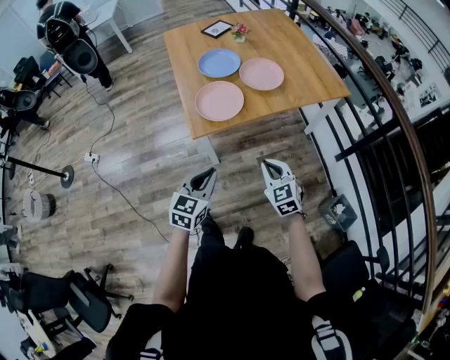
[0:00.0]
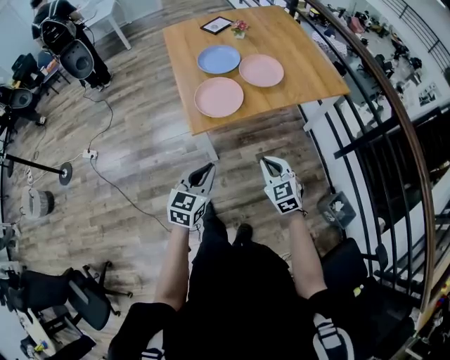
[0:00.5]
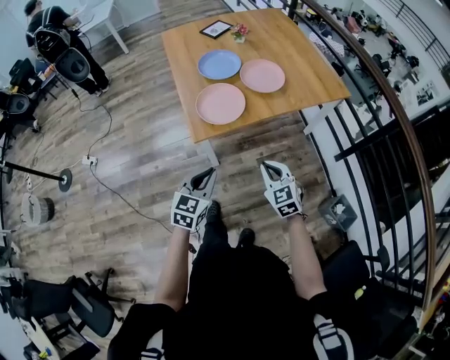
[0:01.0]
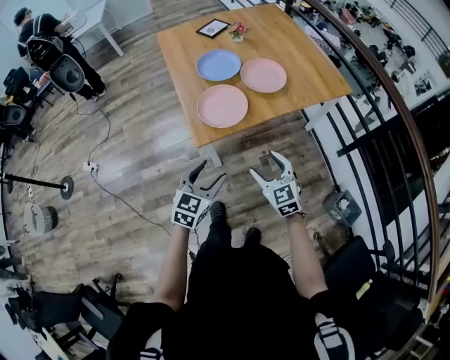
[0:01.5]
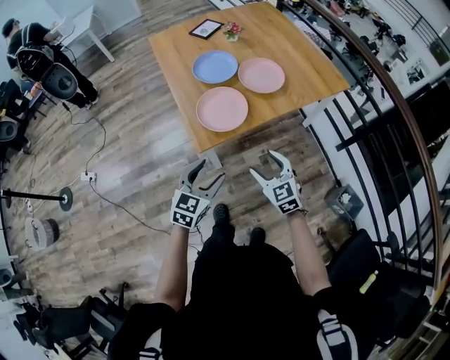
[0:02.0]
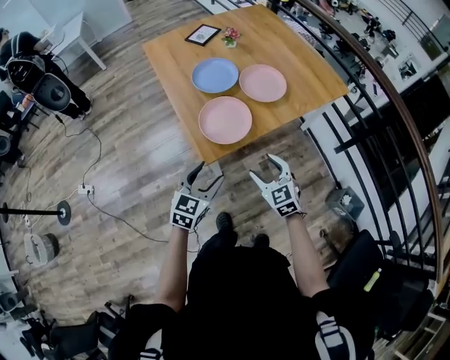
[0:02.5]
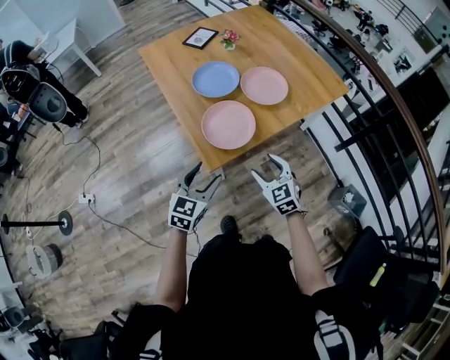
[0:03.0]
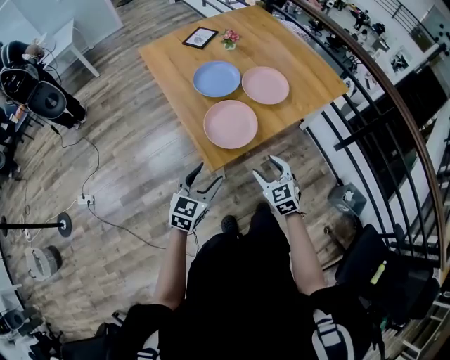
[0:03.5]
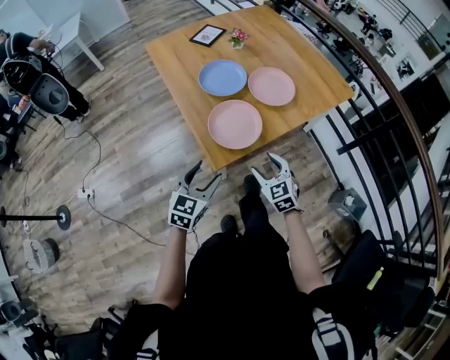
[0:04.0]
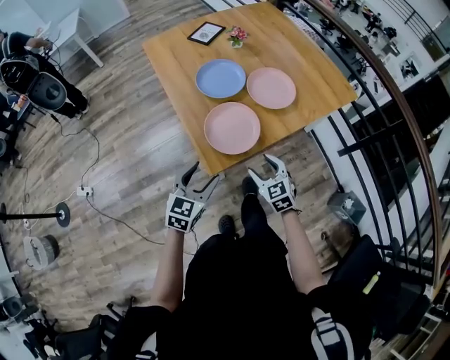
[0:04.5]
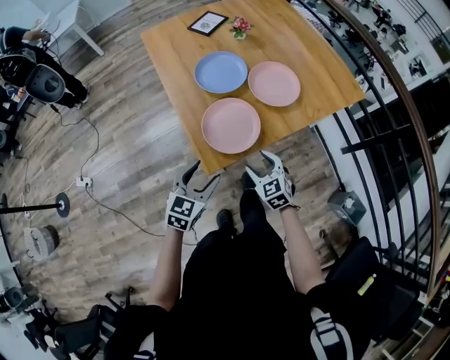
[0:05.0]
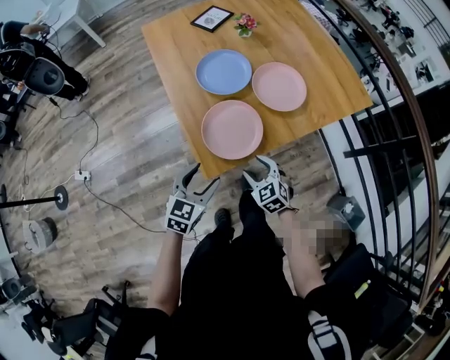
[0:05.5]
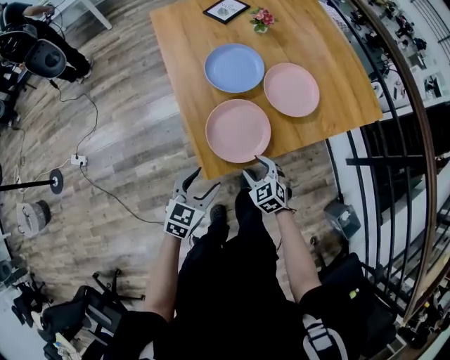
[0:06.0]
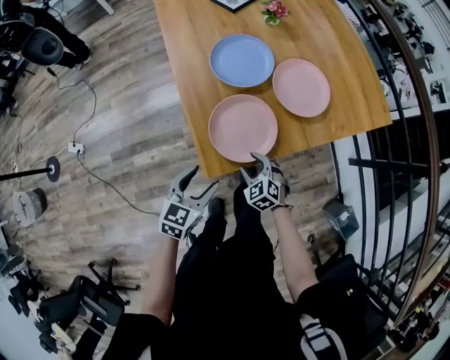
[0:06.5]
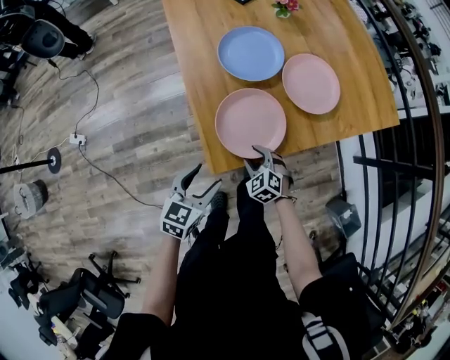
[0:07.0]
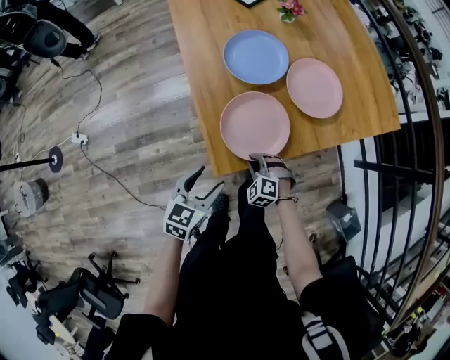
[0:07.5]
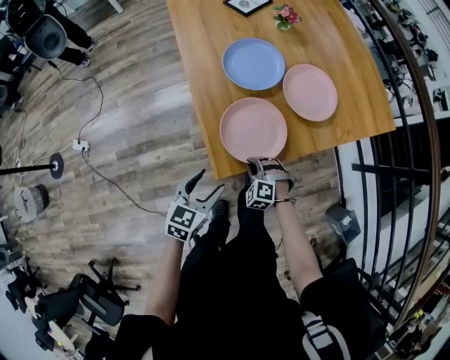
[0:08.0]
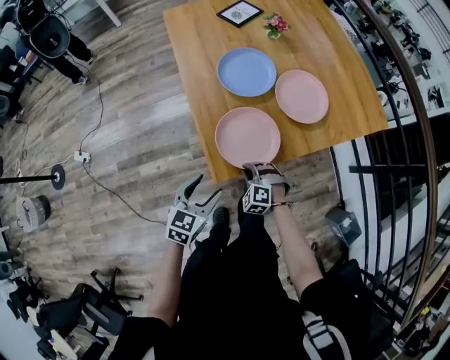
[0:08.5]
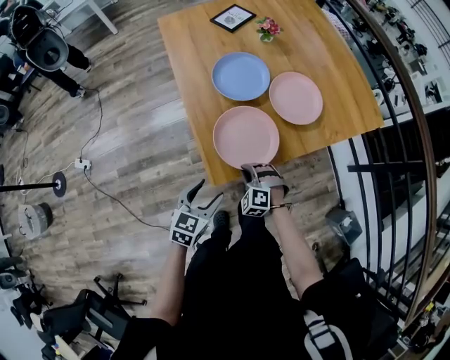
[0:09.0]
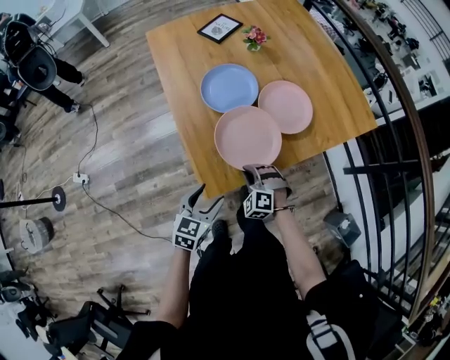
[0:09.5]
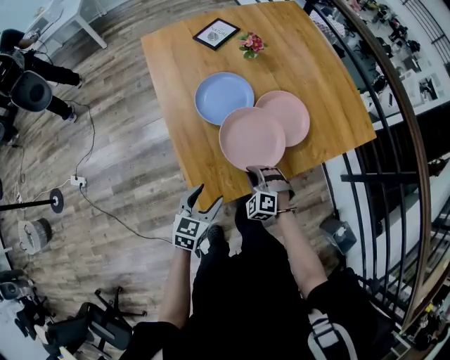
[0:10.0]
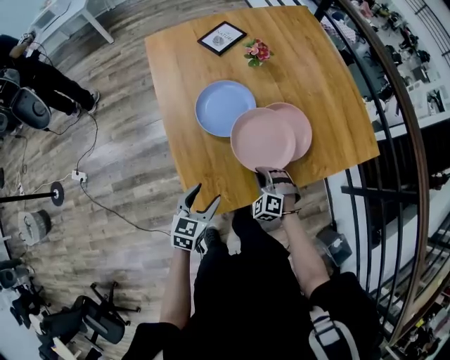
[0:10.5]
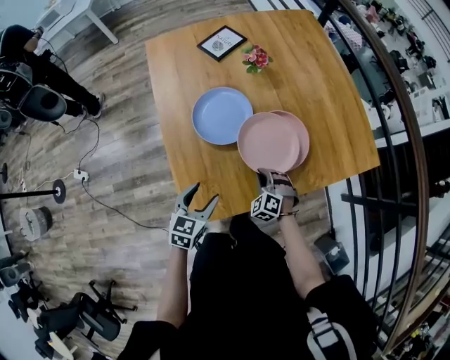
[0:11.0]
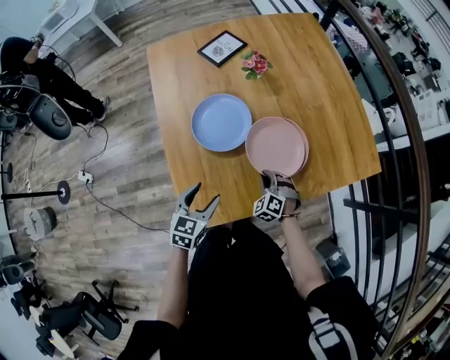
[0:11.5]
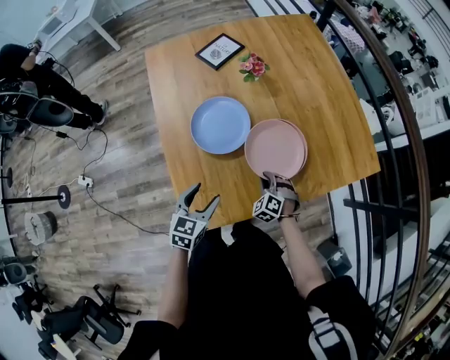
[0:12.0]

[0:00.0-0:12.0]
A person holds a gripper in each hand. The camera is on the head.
0:00.0 to 0:02.0: The left gripper travels forward and to the left by some 10 cm, and opens. The right gripper heads to the left and forward, covering some 10 cm, and opens up.
0:02.0 to 0:04.0: The right gripper heads forward and to the left, covering some 10 cm; the left gripper shifts some 15 cm to the left and forward.
0:04.0 to 0:06.0: The two grippers go approximately 10 cm downward and forward. The right gripper swivels about 20 degrees.
0:06.0 to 0:08.0: The right gripper travels downward by about 5 cm, swivels roughly 40 degrees, and closes its fingers.
0:08.0 to 0:10.0: The right gripper heads forward, upward and to the right, covering roughly 15 cm; the left gripper goes roughly 10 cm forward and to the right.
0:10.0 to 0:12.0: The left gripper shifts about 10 cm forward. The right gripper moves forward, to the right and downward, roughly 15 cm.

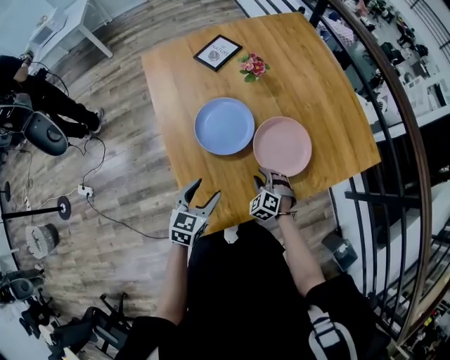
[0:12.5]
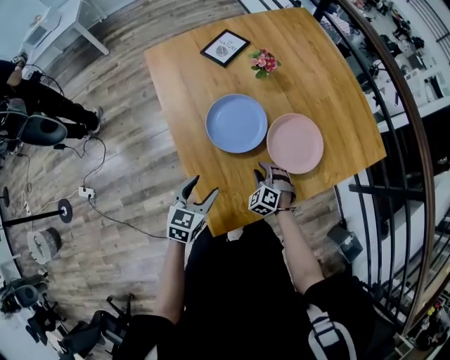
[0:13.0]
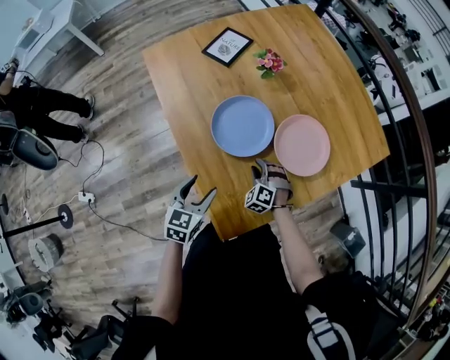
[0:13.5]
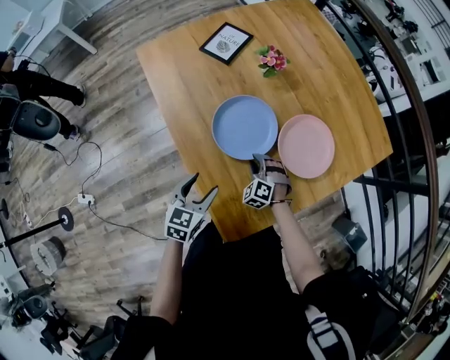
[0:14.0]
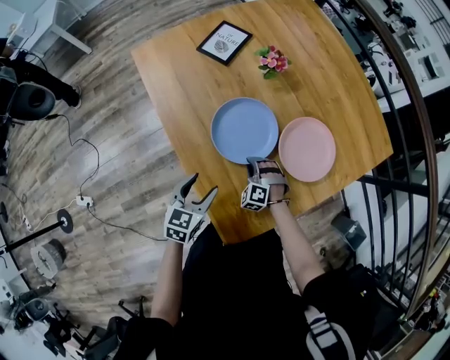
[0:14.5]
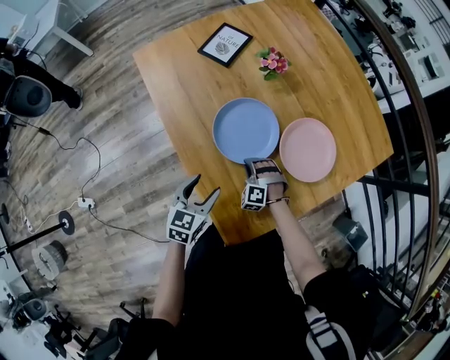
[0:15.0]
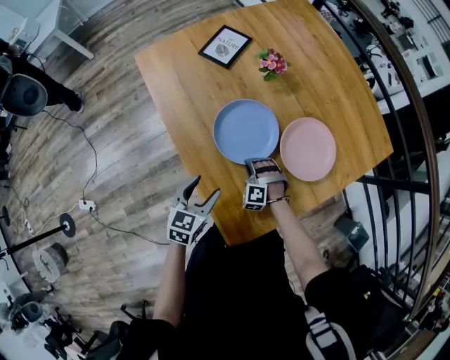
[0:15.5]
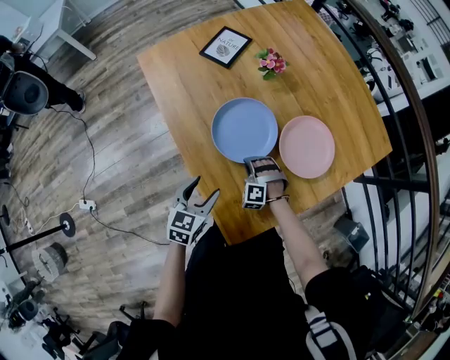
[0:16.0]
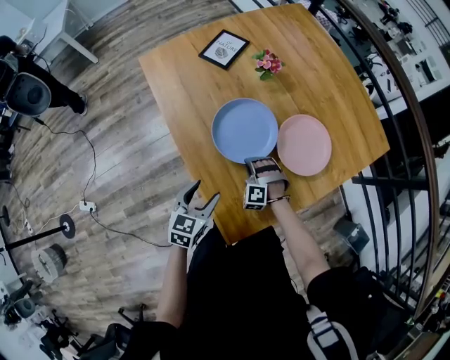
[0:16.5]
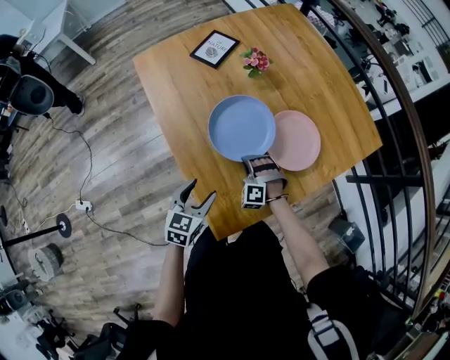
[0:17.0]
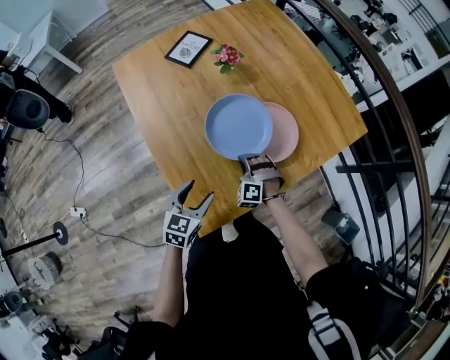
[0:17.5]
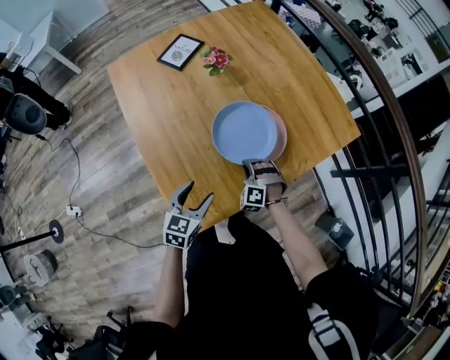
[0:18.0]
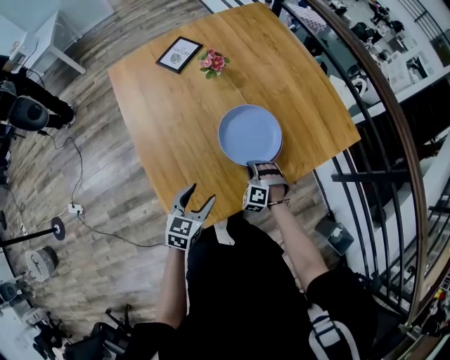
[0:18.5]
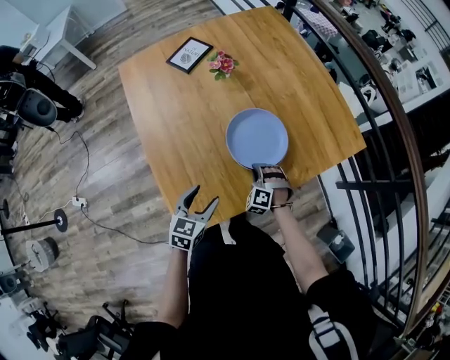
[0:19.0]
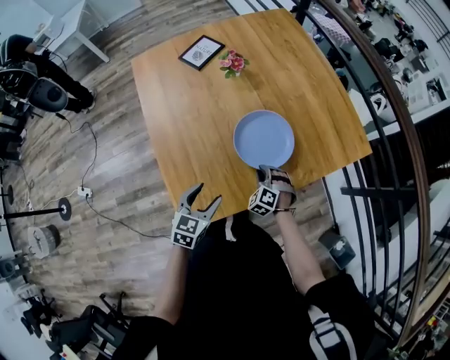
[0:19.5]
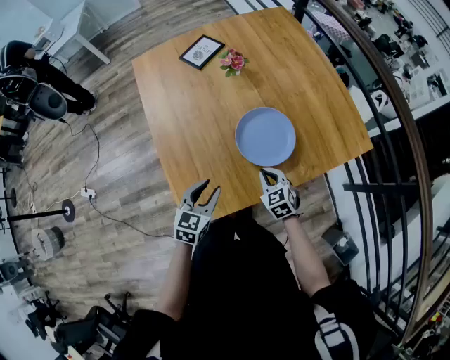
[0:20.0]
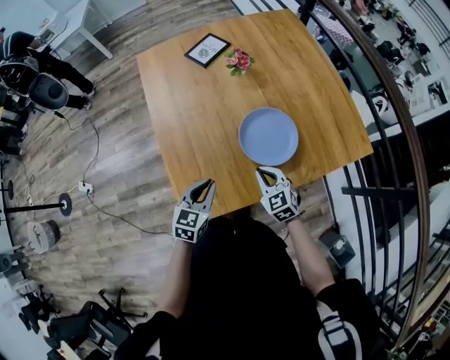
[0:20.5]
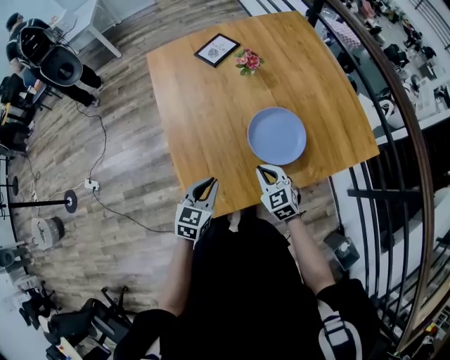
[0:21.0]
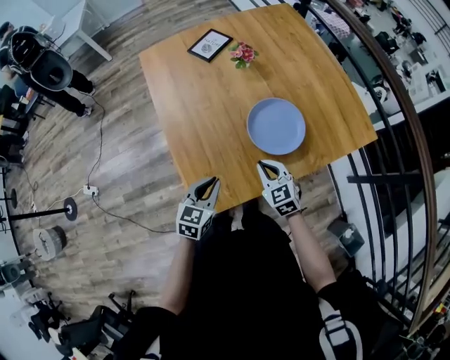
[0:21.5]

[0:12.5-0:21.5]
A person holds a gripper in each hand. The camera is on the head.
0:12.5 to 0:14.5: The left gripper moves to the left and forward, roughly 15 cm, while the right gripper moves to the left, approximately 15 cm.
0:14.5 to 0:17.0: The right gripper moves upward, approximately 5 cm. Meanwhile the left gripper moves backward, some 5 cm.
0:17.0 to 0:19.5: The grippers both shift to the right by roughly 20 cm. The right gripper swivels approximately 20 degrees.
0:19.5 to 0:21.5: The right gripper goes about 15 cm upward and to the left, and turns by roughly 40 degrees, while the left gripper ends up approximately 5 cm from where it was, and closes.

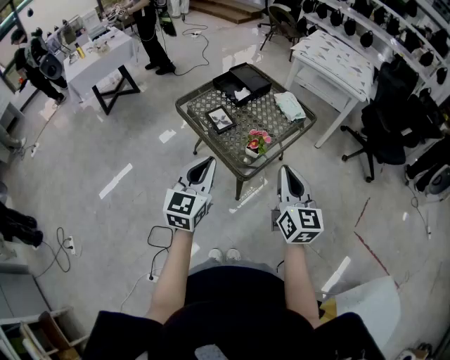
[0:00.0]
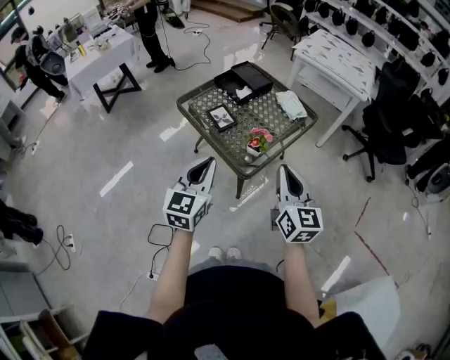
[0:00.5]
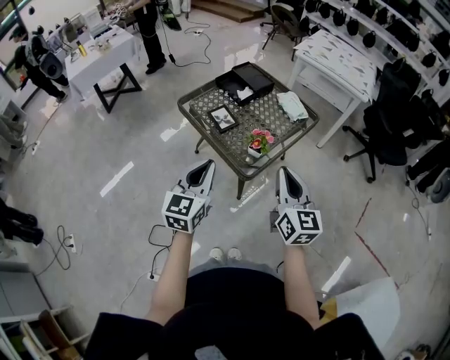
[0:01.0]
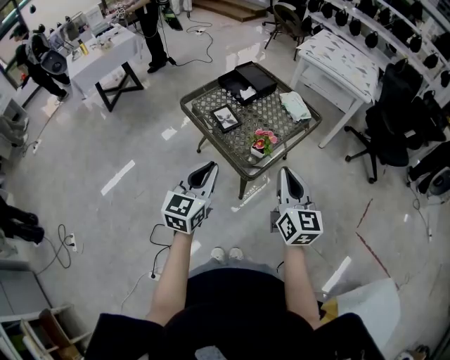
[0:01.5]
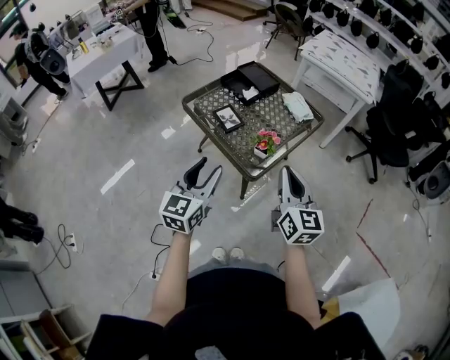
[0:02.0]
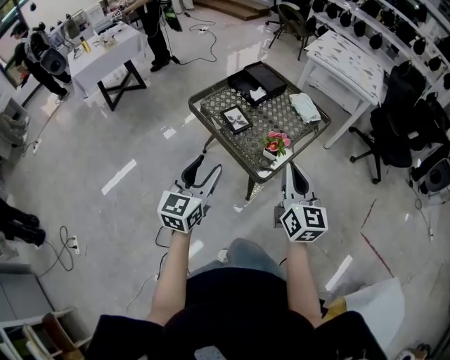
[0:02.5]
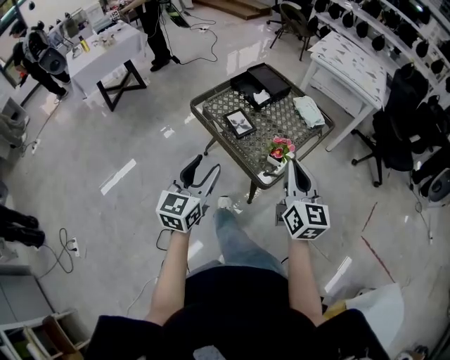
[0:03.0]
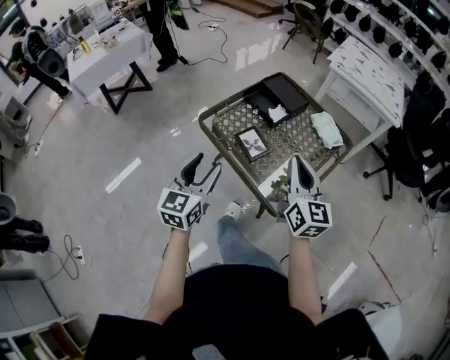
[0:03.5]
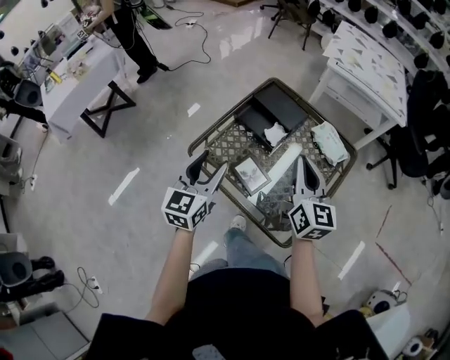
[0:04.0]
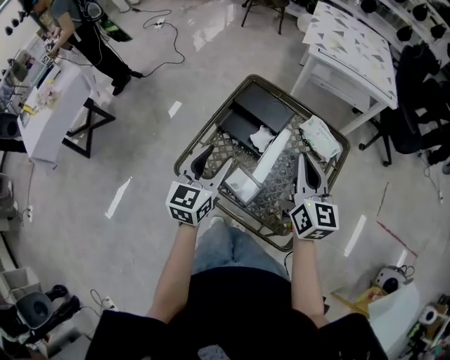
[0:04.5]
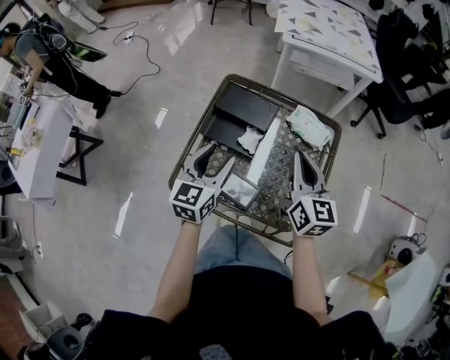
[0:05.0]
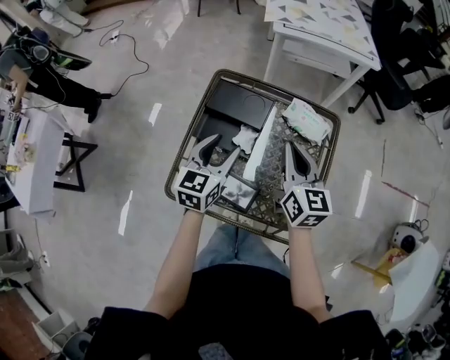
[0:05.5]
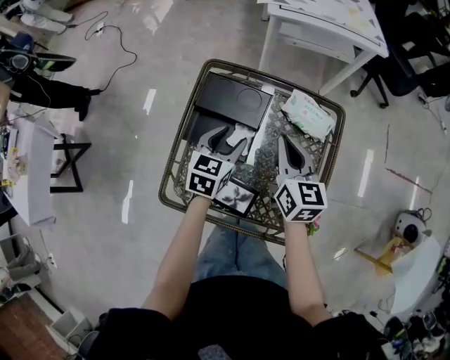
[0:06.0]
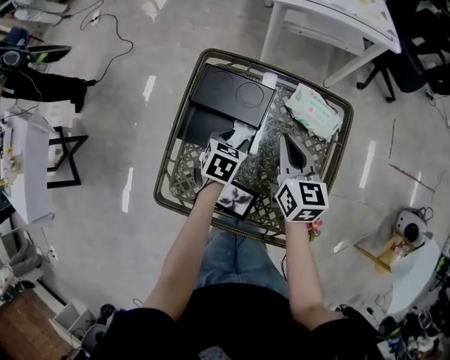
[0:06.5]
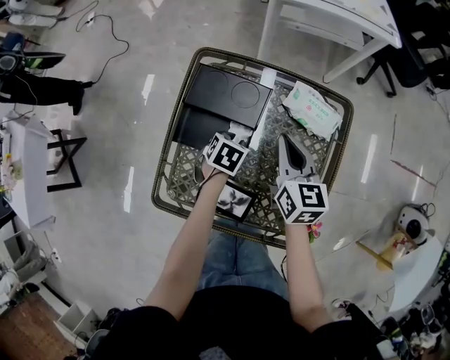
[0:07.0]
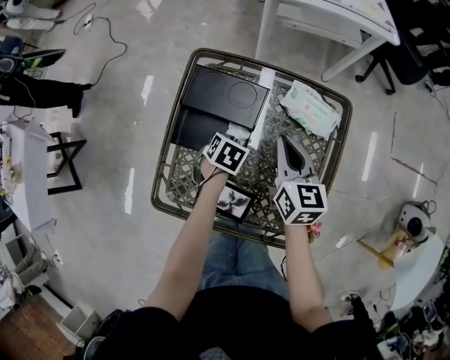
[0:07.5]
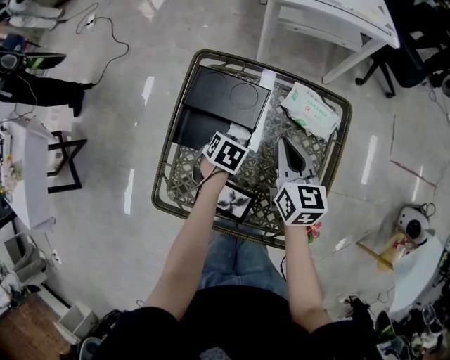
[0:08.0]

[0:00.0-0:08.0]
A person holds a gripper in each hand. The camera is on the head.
0:00.0 to 0:02.0: The left gripper opens its fingers.
0:02.0 to 0:04.0: The pair of grippers is taken forward, approximately 40 cm.
0:04.0 to 0:06.0: The left gripper shifts by approximately 35 cm, and turns by some 40 degrees. Meanwhile the right gripper ends up about 20 cm from where it was, and swivels some 20 degrees.
0:06.0 to 0:08.0: The right gripper heads downward, covering approximately 5 cm, while the left gripper is displaced downward by roughly 15 cm, angles its fingers downward, by some 40 degrees, and closes up.
